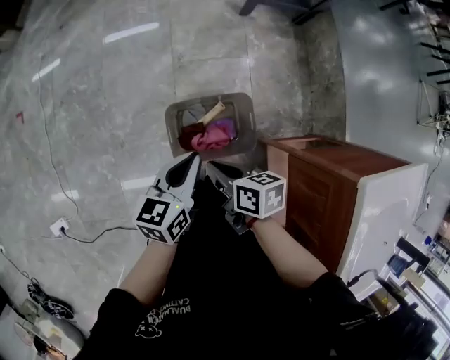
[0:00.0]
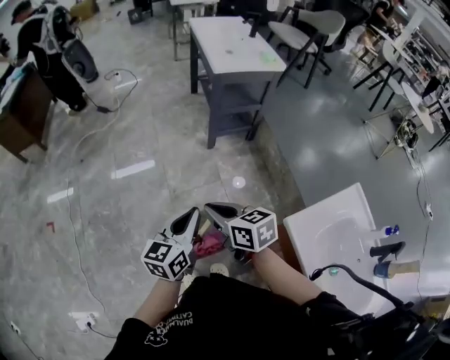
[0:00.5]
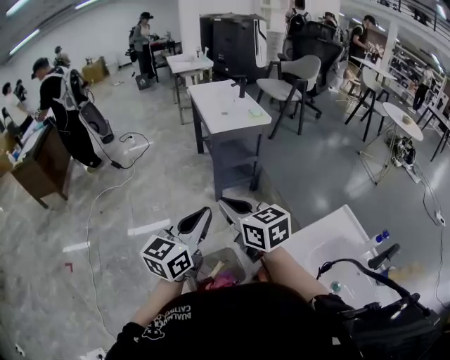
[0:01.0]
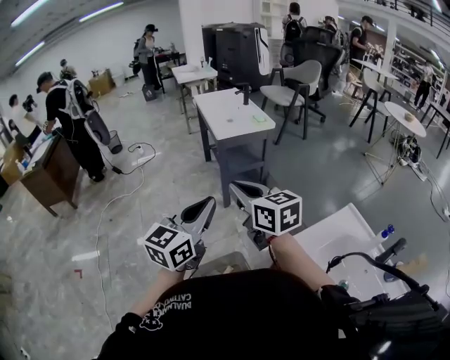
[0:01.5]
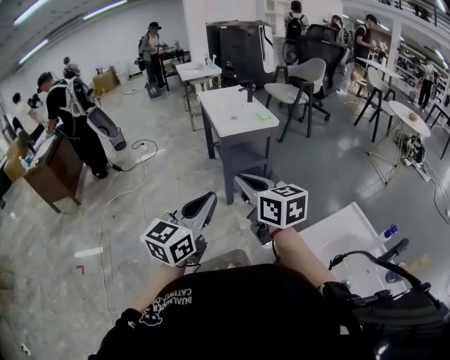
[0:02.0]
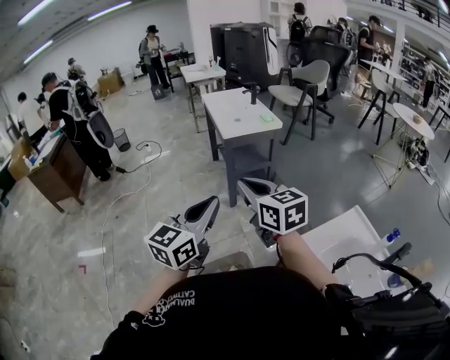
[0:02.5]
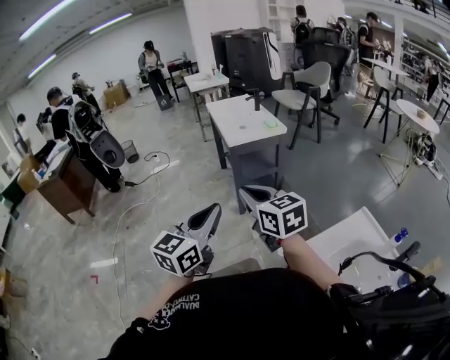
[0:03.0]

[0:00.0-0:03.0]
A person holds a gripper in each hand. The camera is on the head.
0:00.0 to 0:01.5: Both grippers move upward, about 50 cm. The right gripper tilts its fingers some 30 degrees upward. Meanwhile the left gripper turns by about 50 degrees.
0:01.5 to 0:03.0: The grippers stay close to where they were, moving slightly.

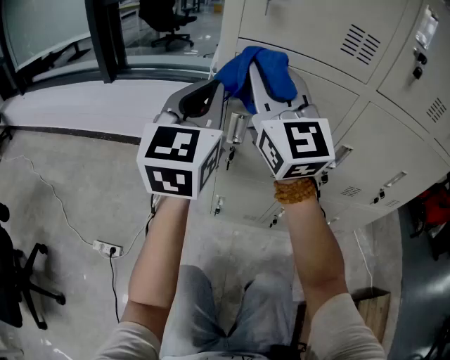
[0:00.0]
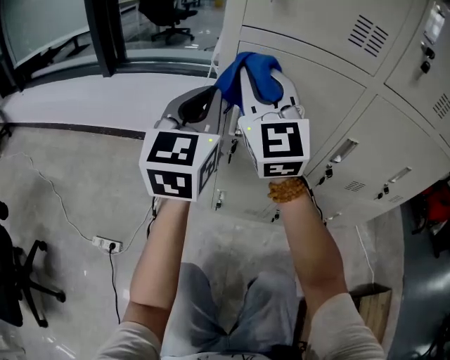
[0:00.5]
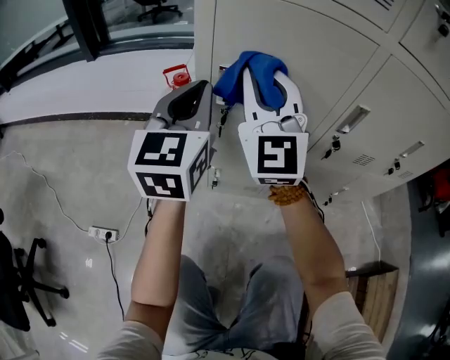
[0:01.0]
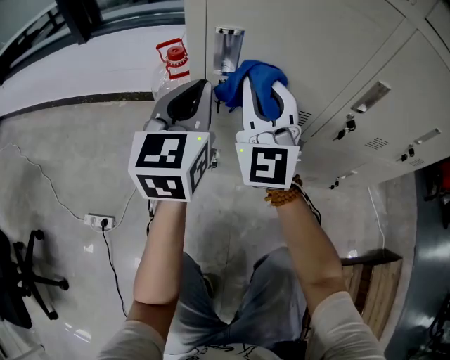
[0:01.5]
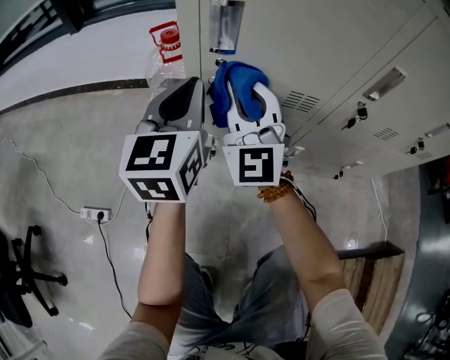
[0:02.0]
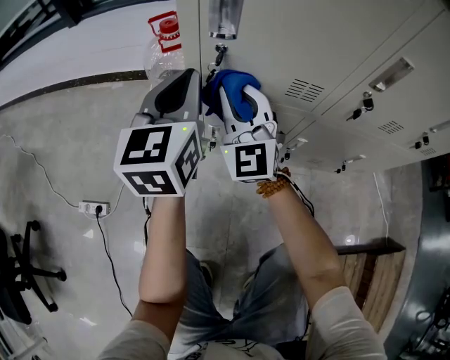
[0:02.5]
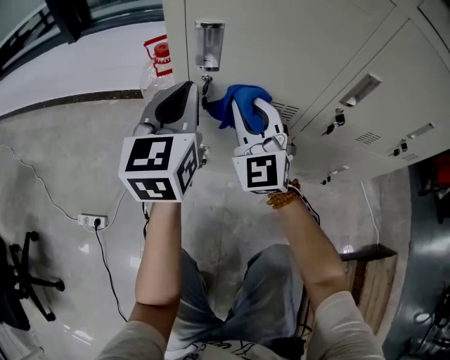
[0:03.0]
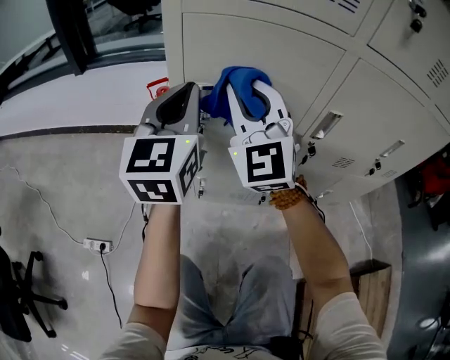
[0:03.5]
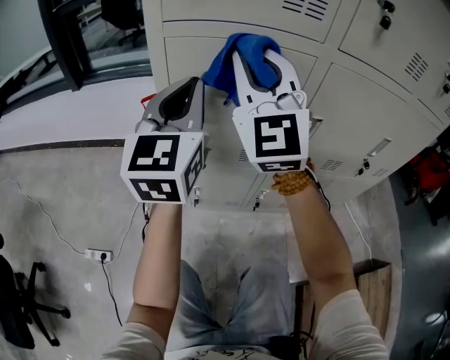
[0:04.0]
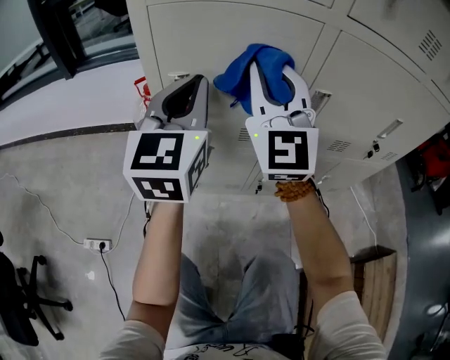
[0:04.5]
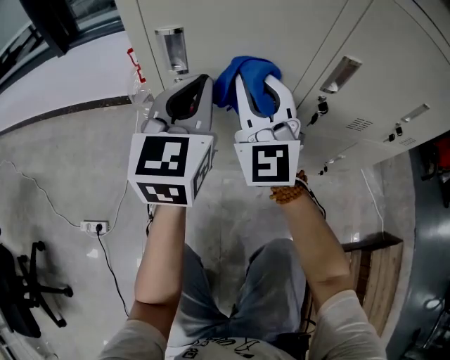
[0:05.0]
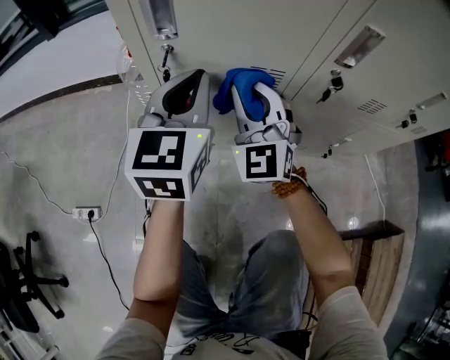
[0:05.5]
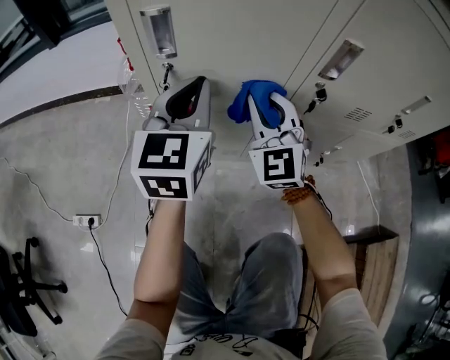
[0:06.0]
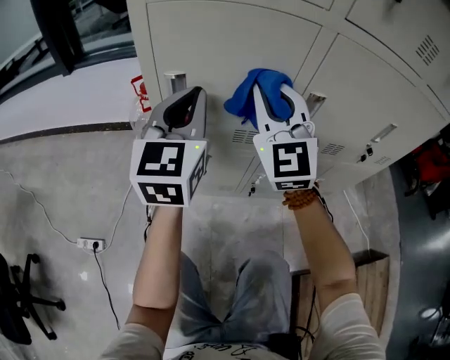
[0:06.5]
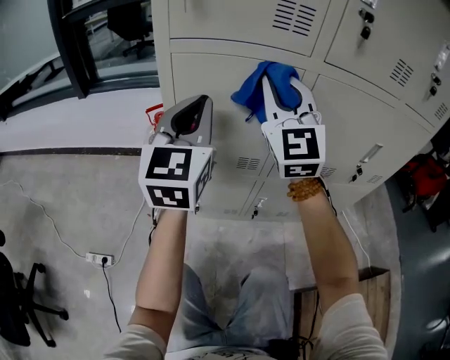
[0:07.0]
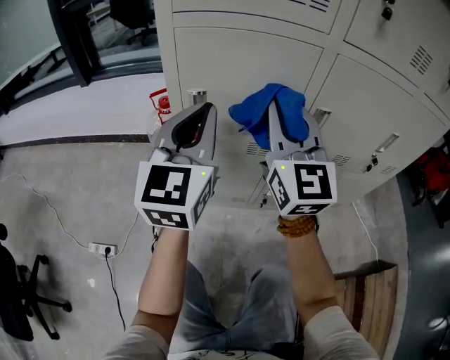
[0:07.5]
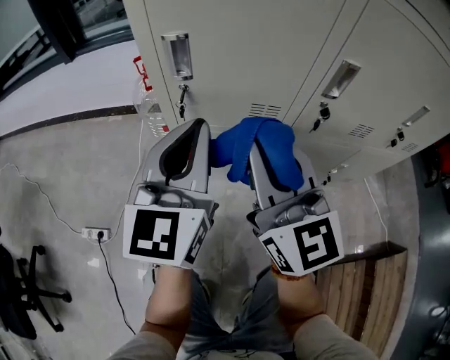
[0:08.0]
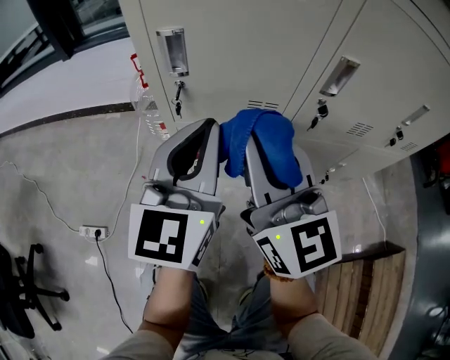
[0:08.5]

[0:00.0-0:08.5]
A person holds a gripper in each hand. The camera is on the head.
0:00.0 to 0:02.0: Both grippers move downward, about 30 cm.
0:02.0 to 0:04.0: The two grippers go roughly 25 cm upward.
0:04.0 to 0:06.5: The left gripper is displaced downward by some 10 cm; the right gripper is displaced downward and to the right by roughly 15 cm.
0:06.5 to 0:08.5: The grippers both shift backward and downward by about 10 cm. The right gripper swivels approximately 30 degrees.

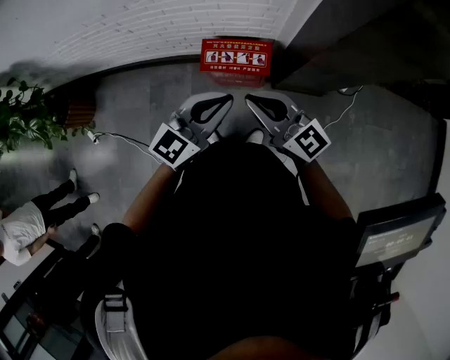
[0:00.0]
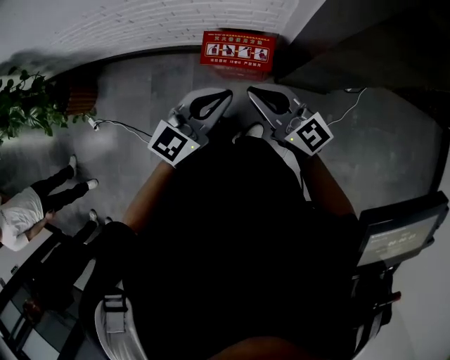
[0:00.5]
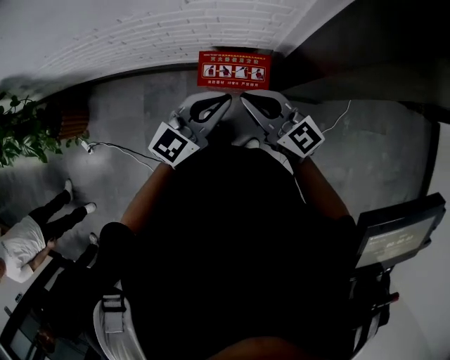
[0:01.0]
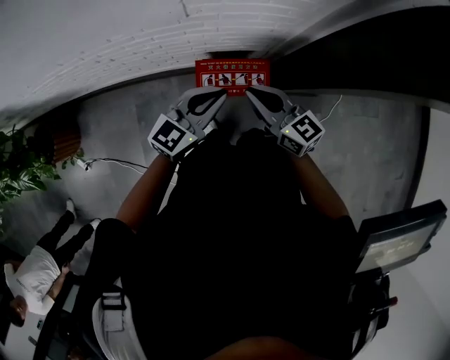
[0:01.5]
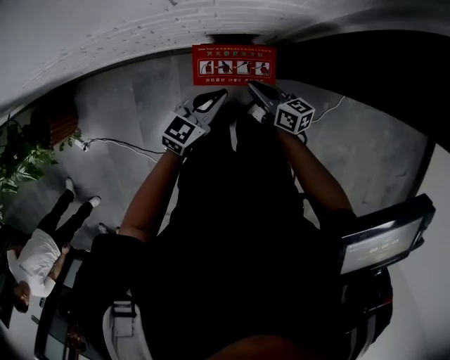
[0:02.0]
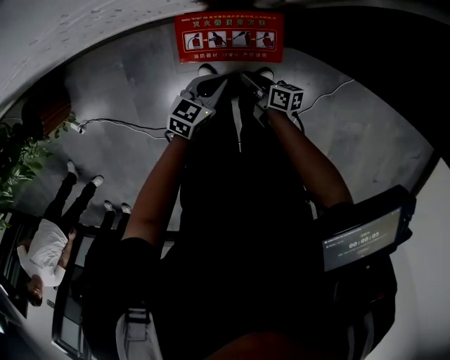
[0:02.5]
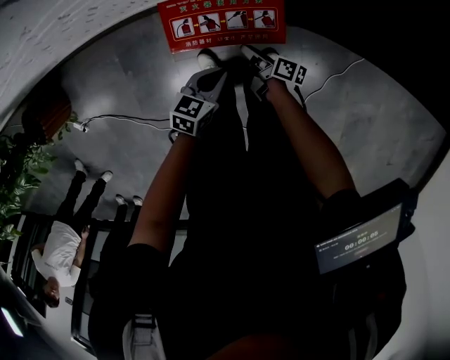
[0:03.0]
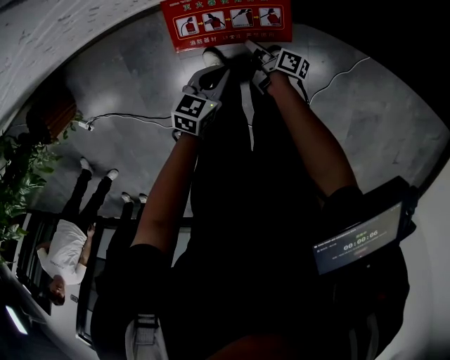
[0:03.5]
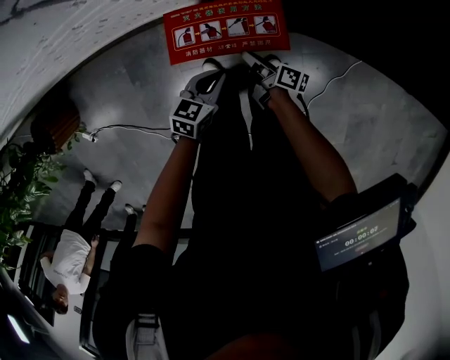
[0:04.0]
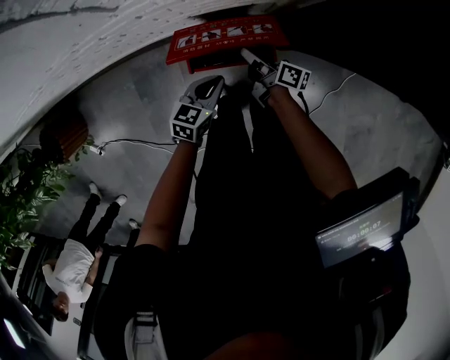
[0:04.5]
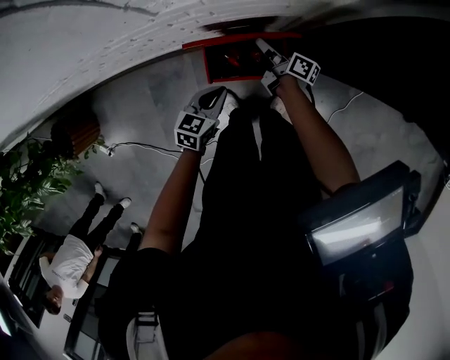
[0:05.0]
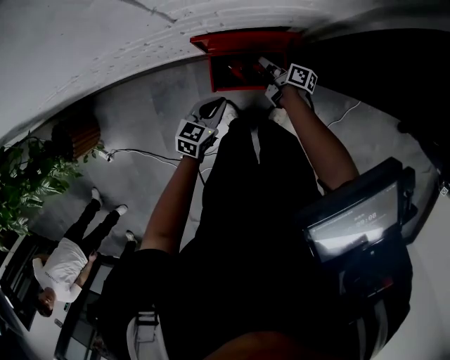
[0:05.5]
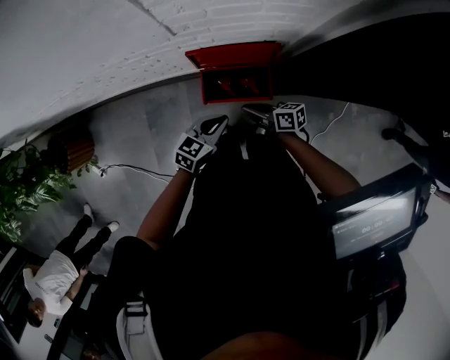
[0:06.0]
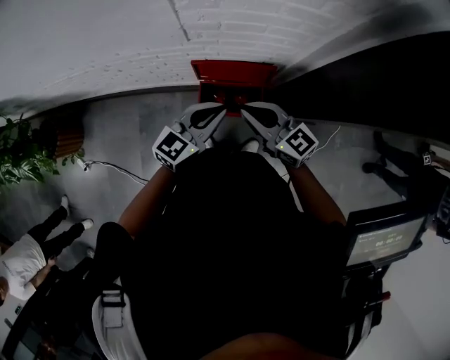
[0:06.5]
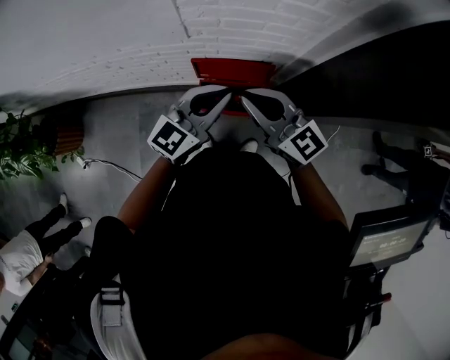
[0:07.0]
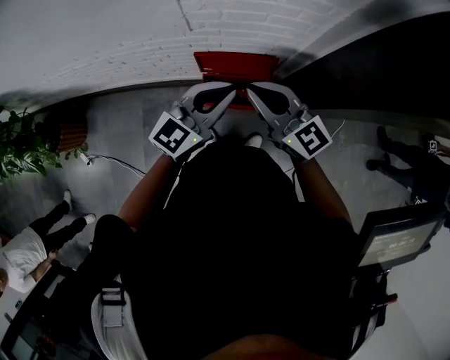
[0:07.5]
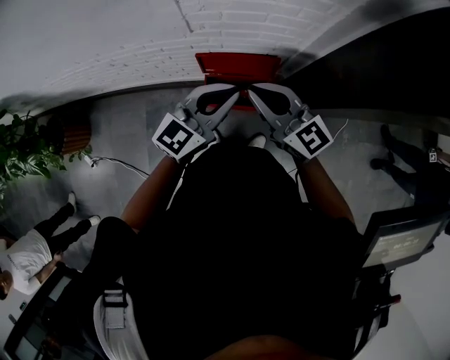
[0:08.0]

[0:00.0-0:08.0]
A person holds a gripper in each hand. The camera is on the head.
0:00.0 to 0:02.0: Both grippers travel together downward and forward, some 35 cm. The right gripper rotates around the line of its fingers by roughly 40 degrees, clockwise from behind.
0:02.0 to 0:04.0: The grippers both shift downward by roughly 20 cm. The left gripper changes its angle by approximately 20 degrees. The right gripper turns by some 40 degrees.
0:04.0 to 0:06.0: Both grippers travel together upward, some 20 cm. The right gripper swivels approximately 40 degrees.
0:06.0 to 0:08.0: Both grippers move upward, about 30 cm. The right gripper rolls counterclockwise, seen from behind, by some 50 degrees; the left gripper turns by some 30 degrees.

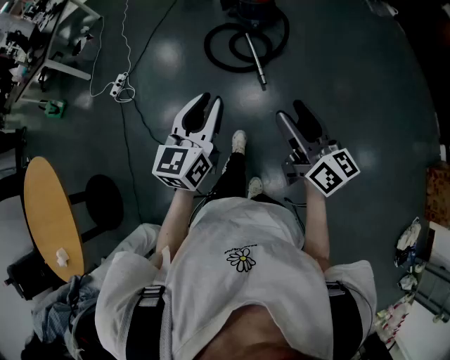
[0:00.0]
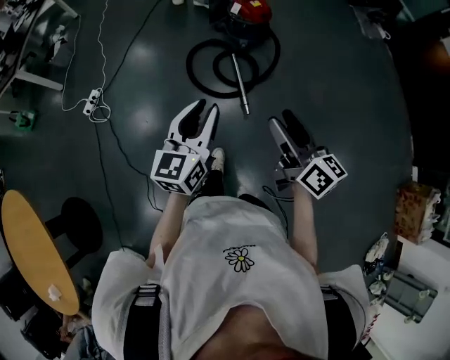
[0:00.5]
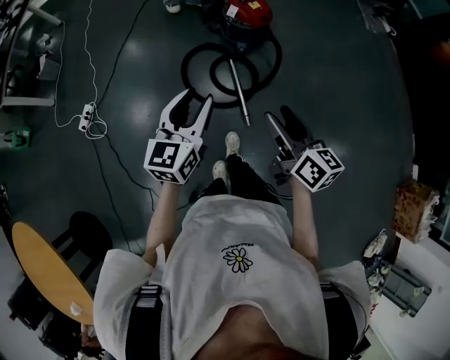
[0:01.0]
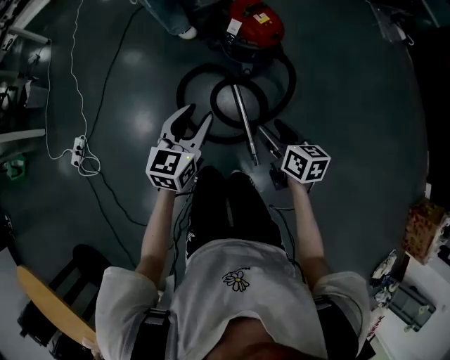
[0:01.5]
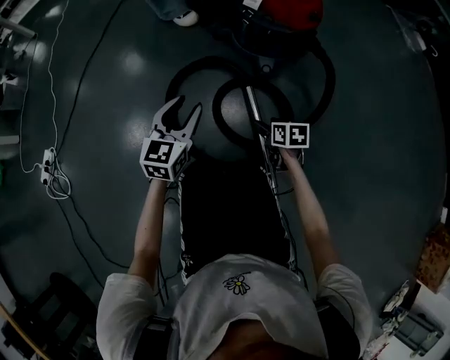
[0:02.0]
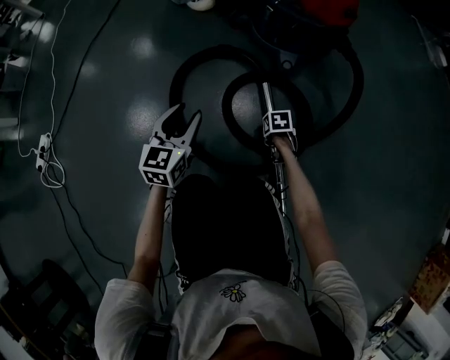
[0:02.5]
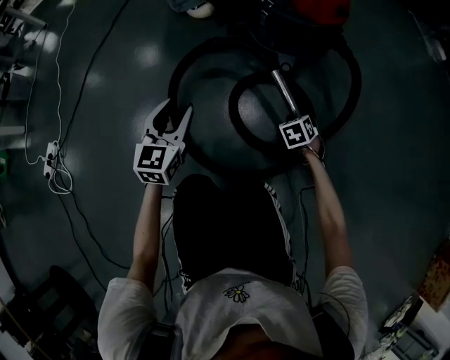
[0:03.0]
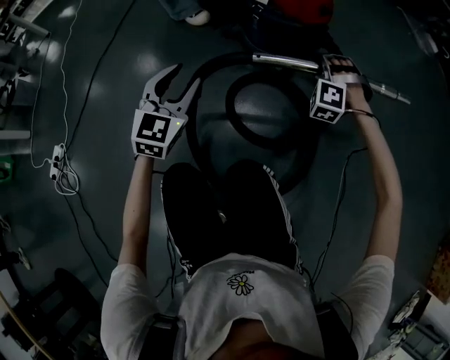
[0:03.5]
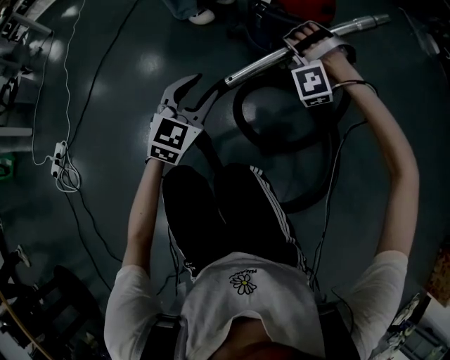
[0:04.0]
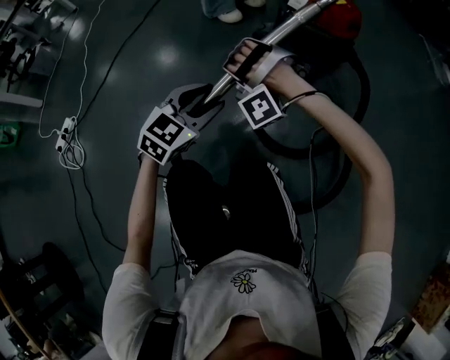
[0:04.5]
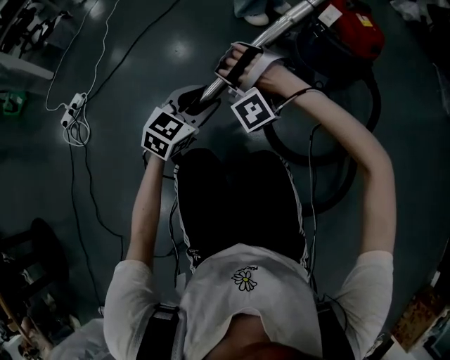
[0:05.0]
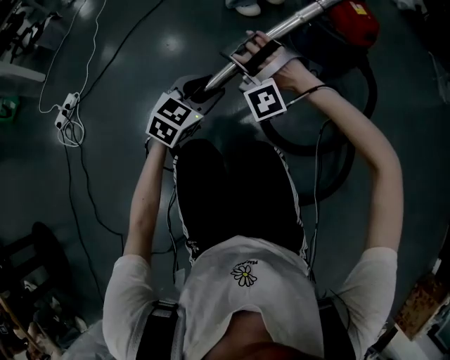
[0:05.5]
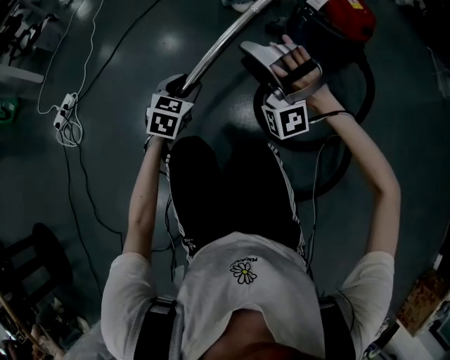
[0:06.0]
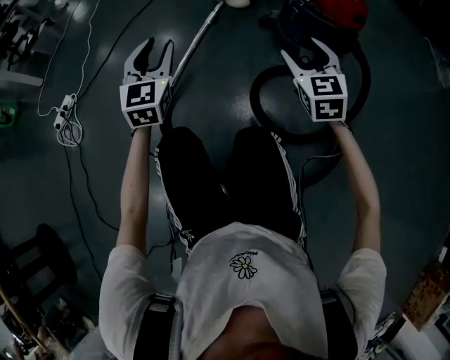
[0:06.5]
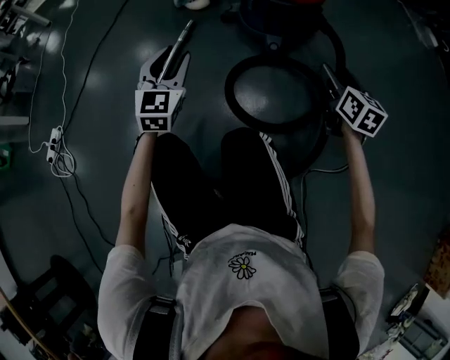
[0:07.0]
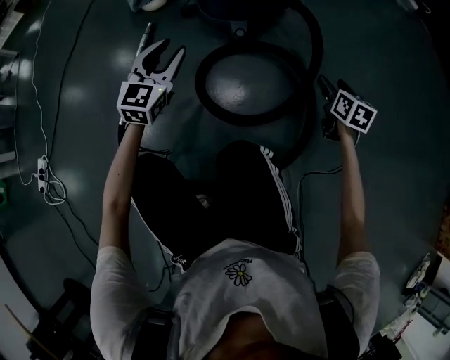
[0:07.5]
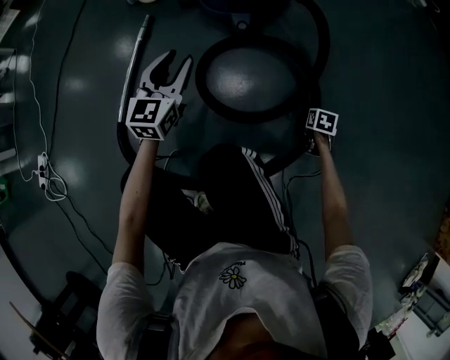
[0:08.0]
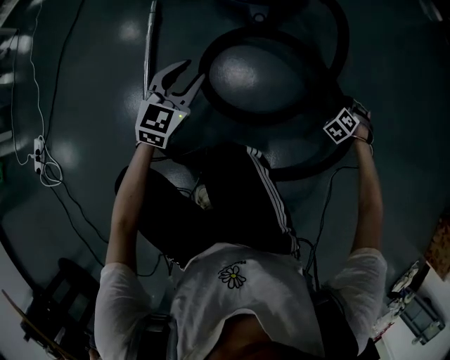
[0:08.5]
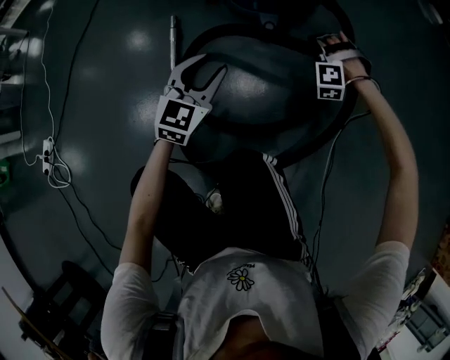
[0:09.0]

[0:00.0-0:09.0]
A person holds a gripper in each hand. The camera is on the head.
0:00.0 to 0:02.0: The pair of grippers is taken forward, approximately 80 cm. Both grippers move downward, about 70 cm. The right gripper tilts its fingers approximately 50 degrees downward.
0:02.0 to 0:04.5: The right gripper changes place by some 30 cm, rolls counterclockwise, seen from behind, by some 150 degrees, and closes its fingers. The left gripper goes downward and returns, roughly 10 cm each way, and swivels some 20 degrees.
0:04.5 to 0:07.0: The left gripper shifts some 5 cm forward, travels to the left and back again, about 15 cm each way, and rotates some 20 degrees; the right gripper heads to the right, covering some 35 cm, rotates around the line of its fingers by approximately 140 degrees, clockwise from behind, and opens.
0:07.0 to 0:09.0: The left gripper moves some 15 cm, and swivels some 20 degrees. The right gripper is displaced downward by about 20 cm, and twists about 120 degrees counterclockwise, seen from behind.
